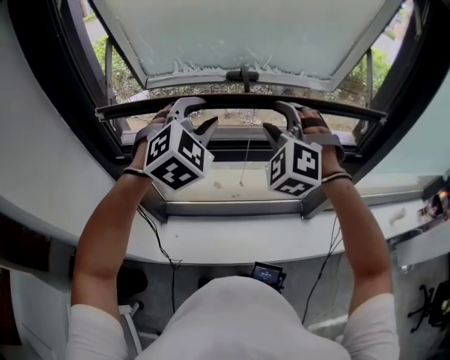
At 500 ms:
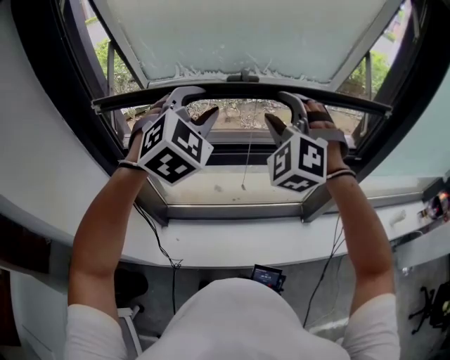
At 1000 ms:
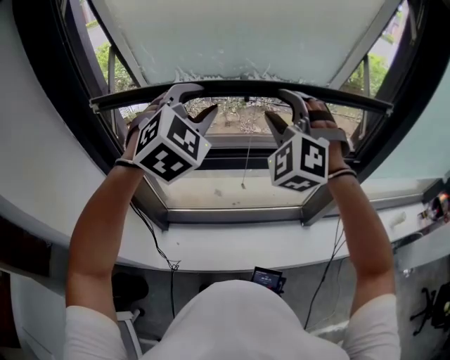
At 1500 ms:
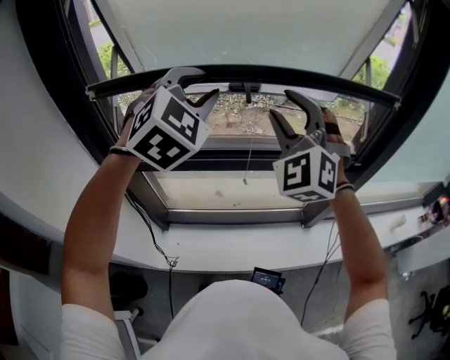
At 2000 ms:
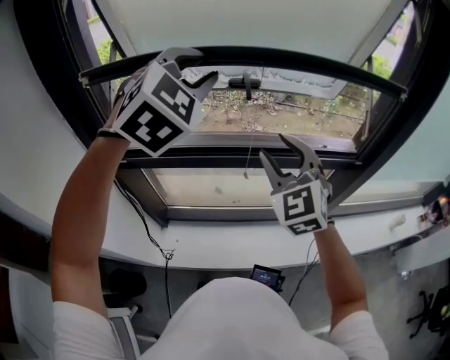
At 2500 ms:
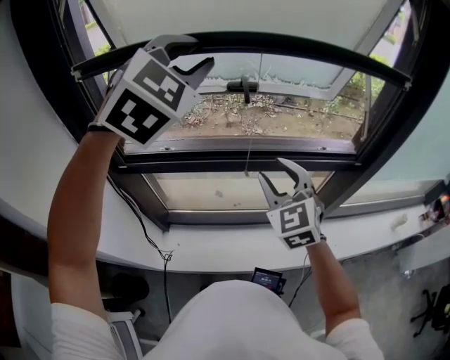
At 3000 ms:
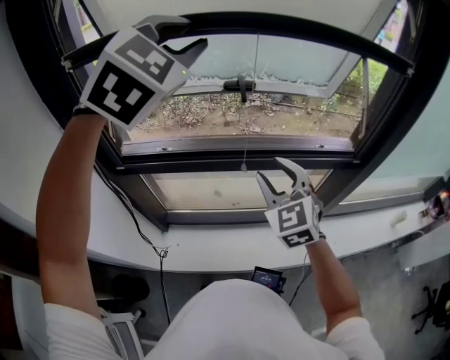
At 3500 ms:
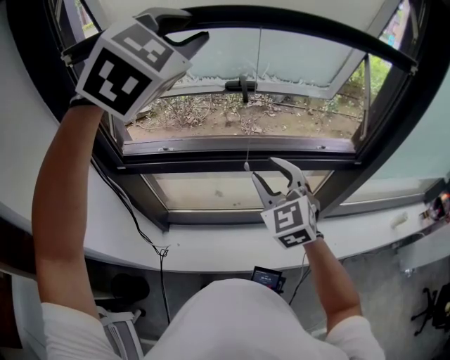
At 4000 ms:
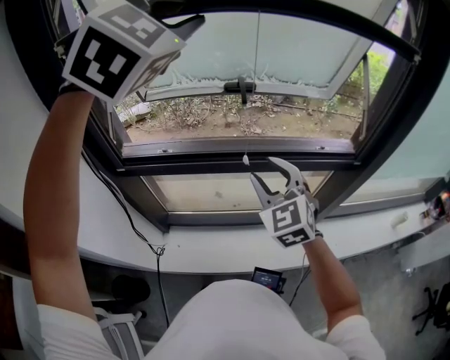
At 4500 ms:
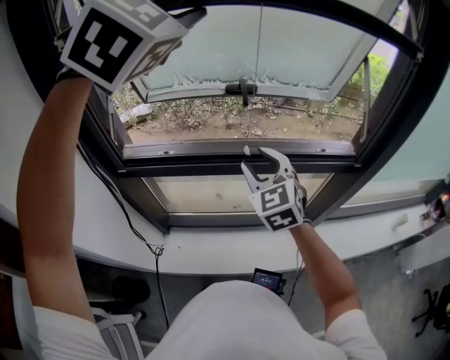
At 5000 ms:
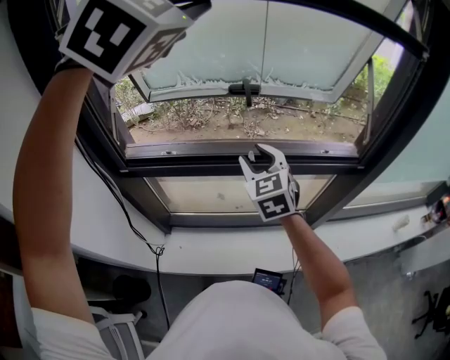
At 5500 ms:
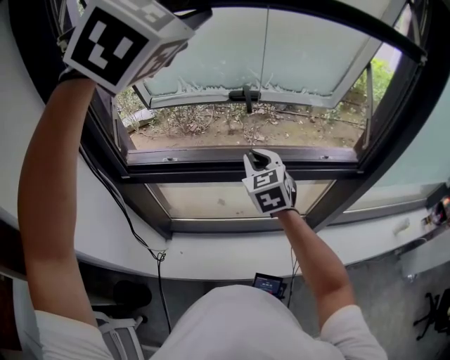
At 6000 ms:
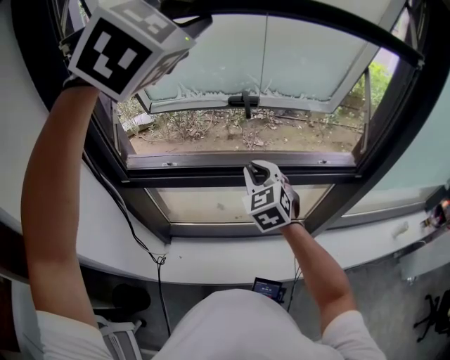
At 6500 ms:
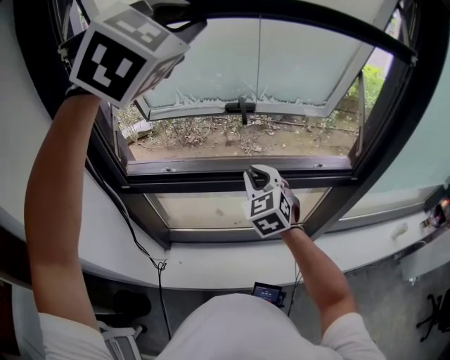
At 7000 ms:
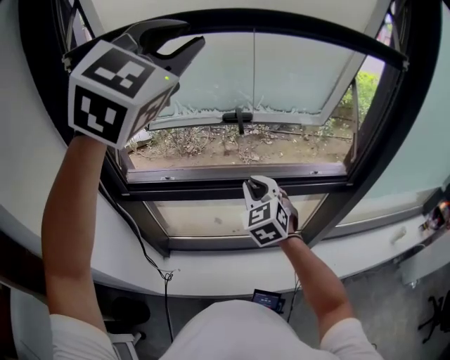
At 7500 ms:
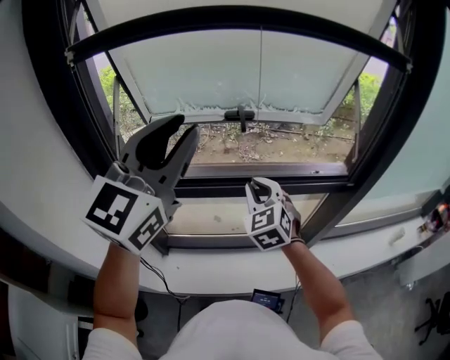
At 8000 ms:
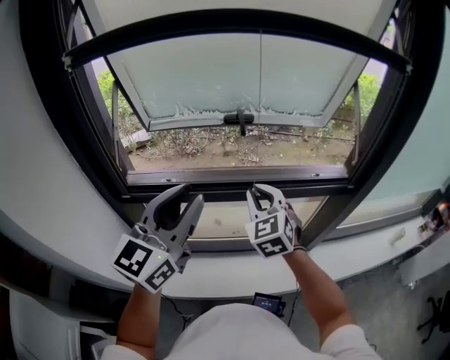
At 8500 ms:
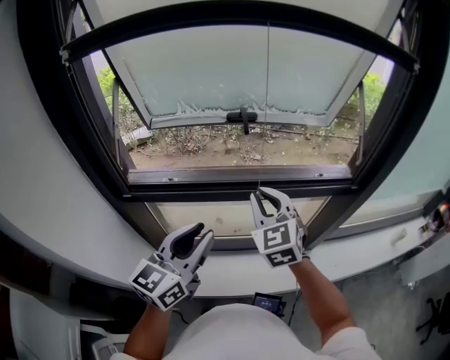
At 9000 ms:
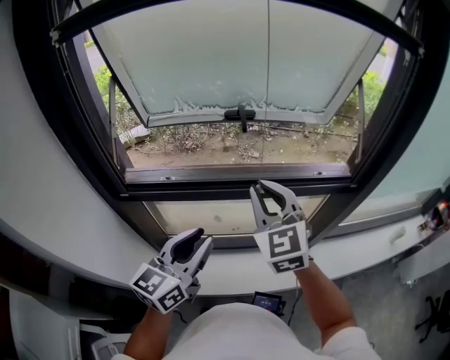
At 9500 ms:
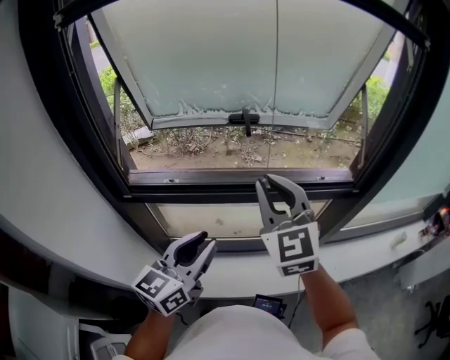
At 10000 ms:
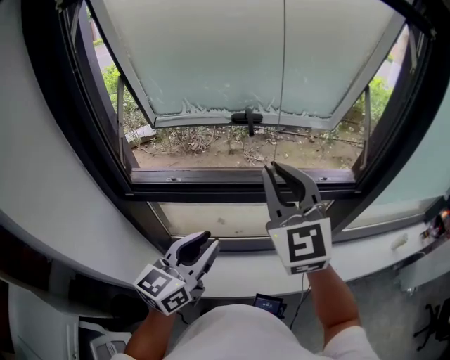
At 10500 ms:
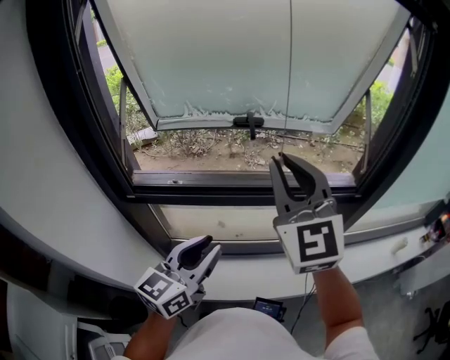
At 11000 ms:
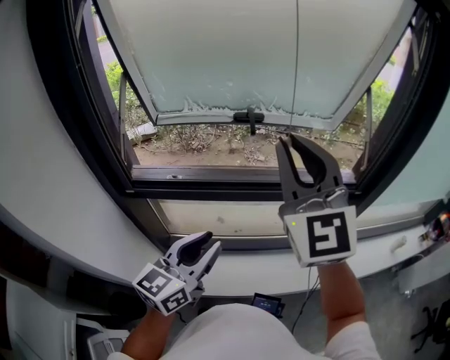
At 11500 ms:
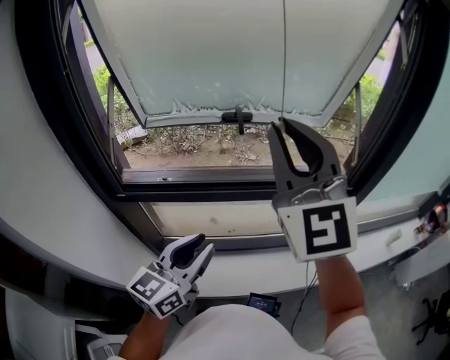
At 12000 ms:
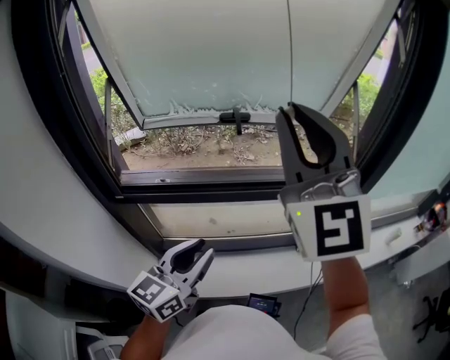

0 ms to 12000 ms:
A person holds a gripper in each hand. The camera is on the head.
0 ms to 2000 ms: The left gripper travels upward by approximately 15 cm. Meanwhile the right gripper travels backward by about 5 cm, moves some 10 cm upward and comes back, and swivels some 40 degrees.
2000 ms to 4000 ms: The left gripper travels upward by some 15 cm; the right gripper goes approximately 5 cm downward.
4000 ms to 6000 ms: The right gripper shifts some 5 cm forward, and closes its fingers.
6000 ms to 8000 ms: The left gripper shifts about 30 cm downward and backward, and twists about 60 degrees counterclockwise, seen from behind.
8000 ms to 10000 ms: The right gripper is displaced upward by about 15 cm, and changes its angle by approximately 20 degrees; the left gripper moves downward, some 10 cm.
10000 ms to 12000 ms: The right gripper shifts approximately 15 cm upward.

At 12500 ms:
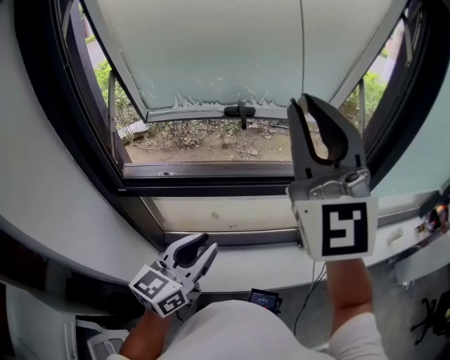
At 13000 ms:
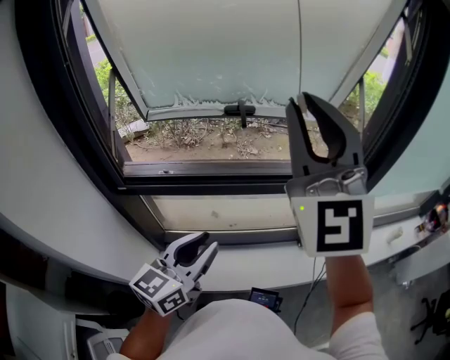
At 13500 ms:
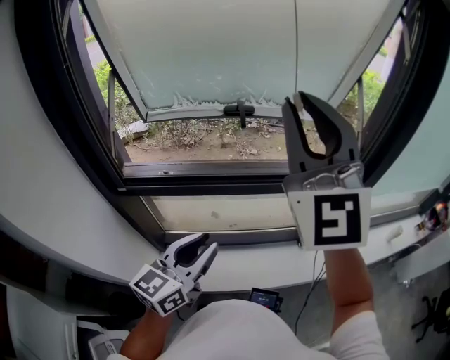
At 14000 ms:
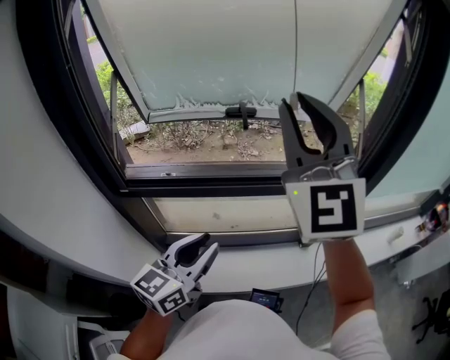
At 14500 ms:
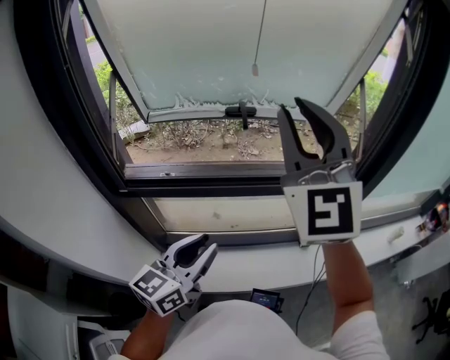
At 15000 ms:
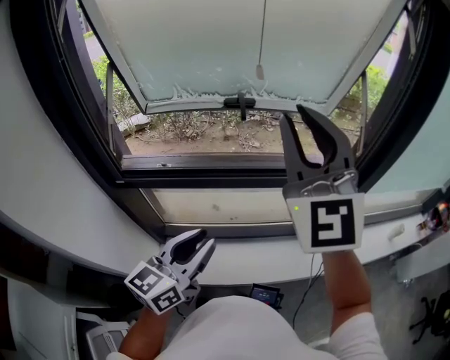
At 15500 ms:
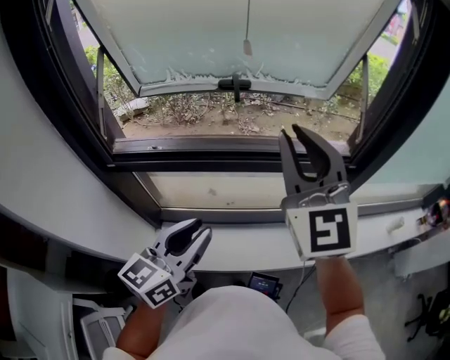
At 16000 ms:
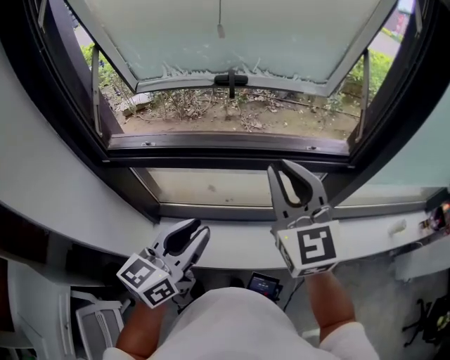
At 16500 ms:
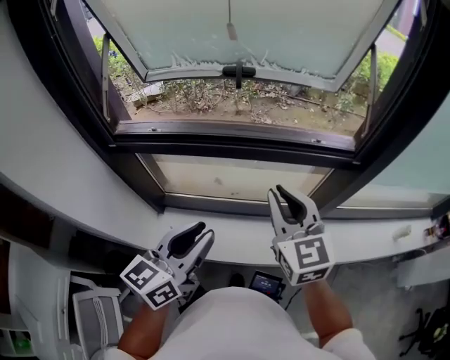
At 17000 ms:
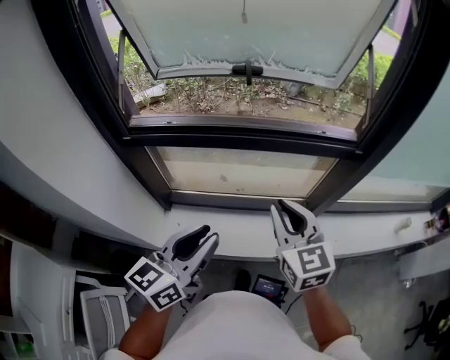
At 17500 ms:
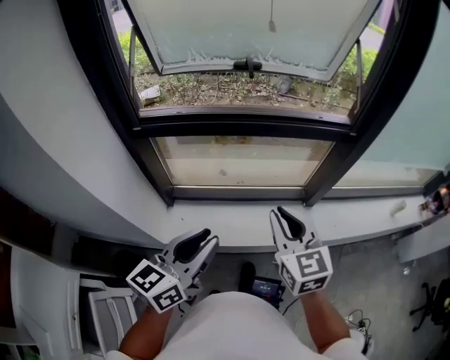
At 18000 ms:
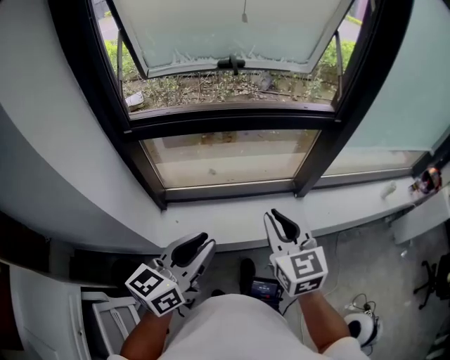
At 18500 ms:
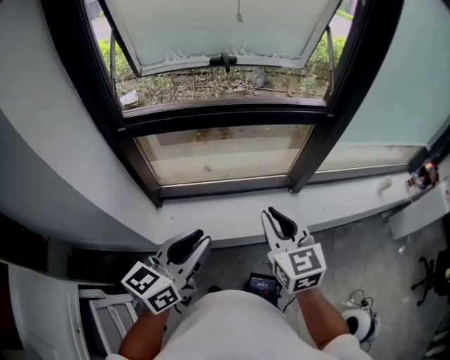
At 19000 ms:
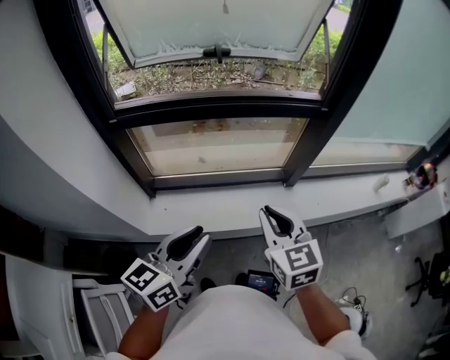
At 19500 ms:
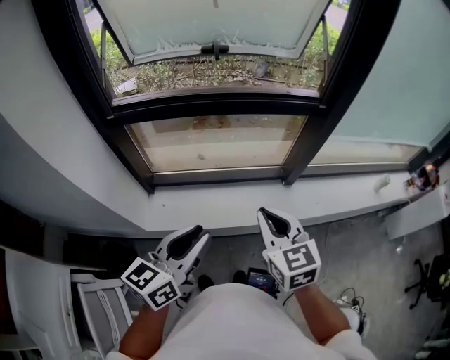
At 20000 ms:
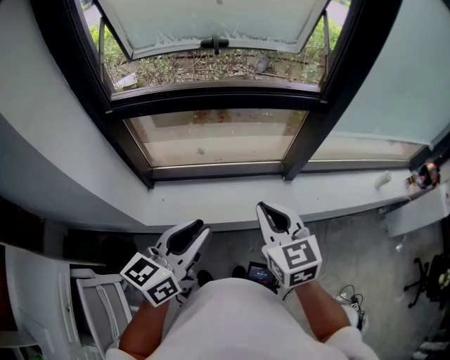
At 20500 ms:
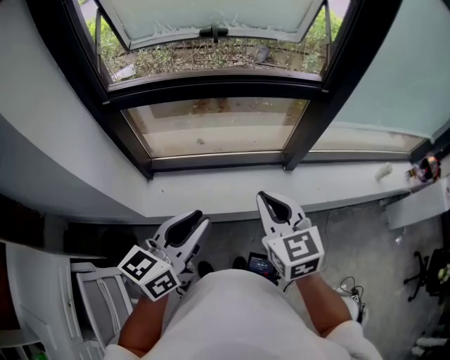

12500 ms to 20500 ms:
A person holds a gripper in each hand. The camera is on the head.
12500 ms to 14500 ms: There are only small adjustments of the grippers.
14500 ms to 16500 ms: The left gripper goes some 10 cm to the right; the right gripper travels downward by some 25 cm, and turns by roughly 40 degrees.
16500 ms to 18500 ms: The grippers both shift backward by roughly 20 cm.
18500 ms to 20500 ms: The left gripper shifts some 5 cm to the right.

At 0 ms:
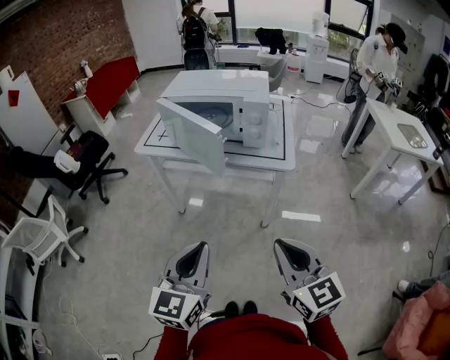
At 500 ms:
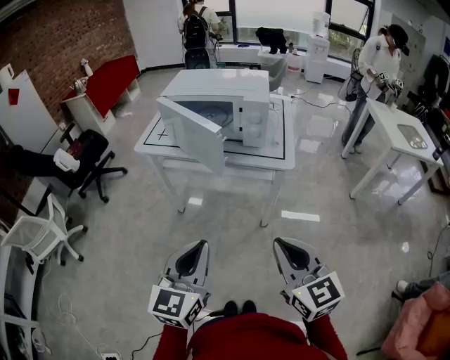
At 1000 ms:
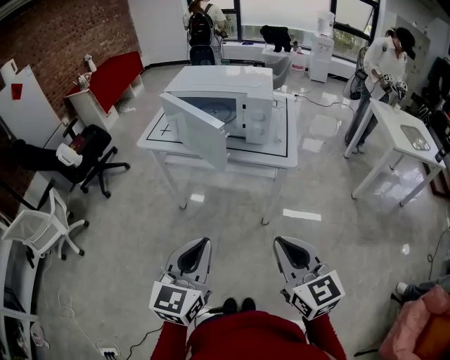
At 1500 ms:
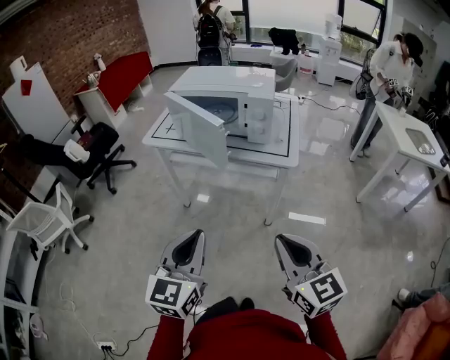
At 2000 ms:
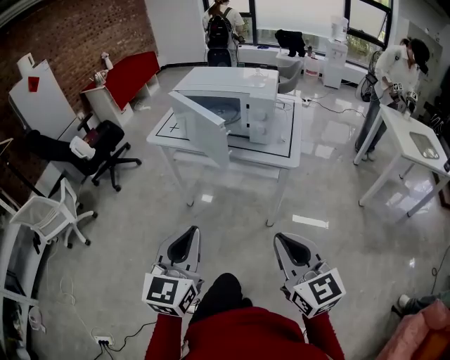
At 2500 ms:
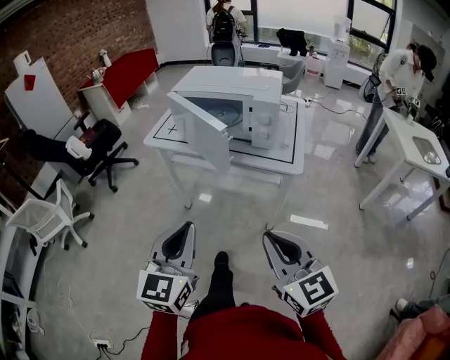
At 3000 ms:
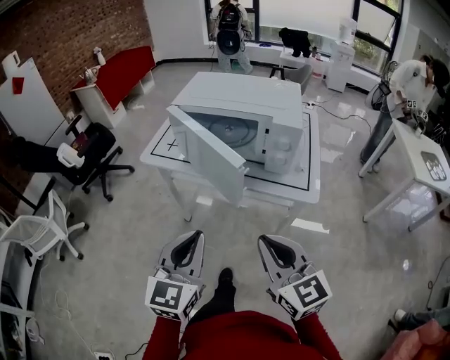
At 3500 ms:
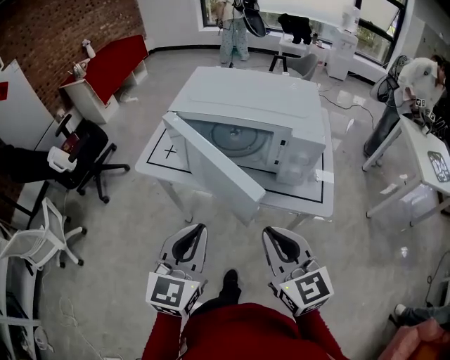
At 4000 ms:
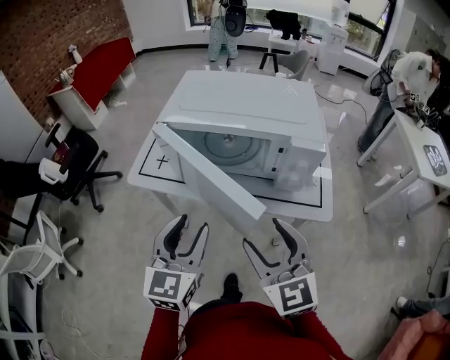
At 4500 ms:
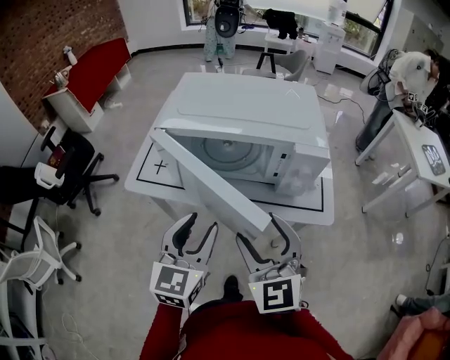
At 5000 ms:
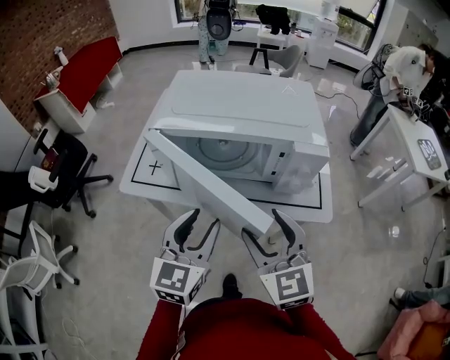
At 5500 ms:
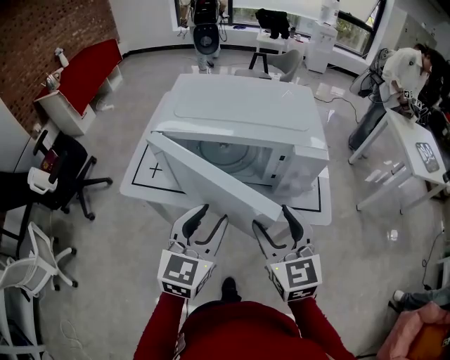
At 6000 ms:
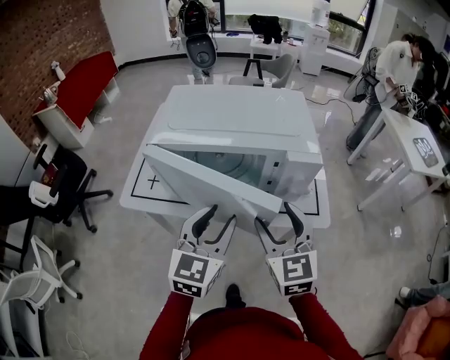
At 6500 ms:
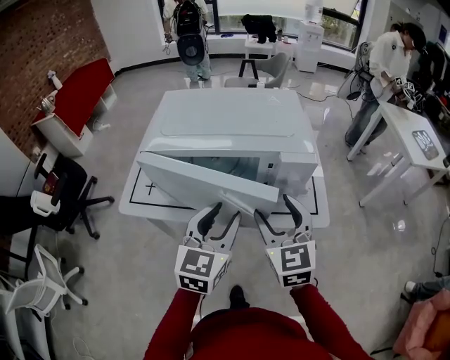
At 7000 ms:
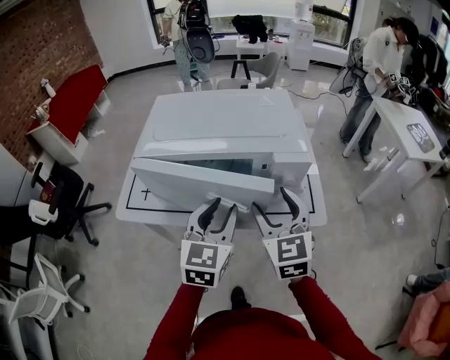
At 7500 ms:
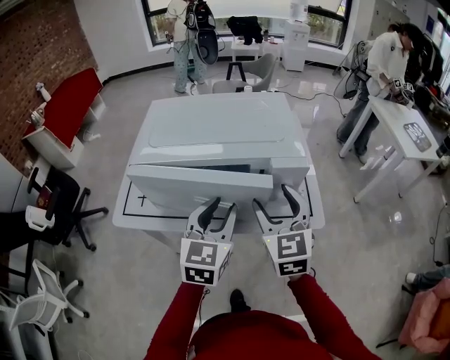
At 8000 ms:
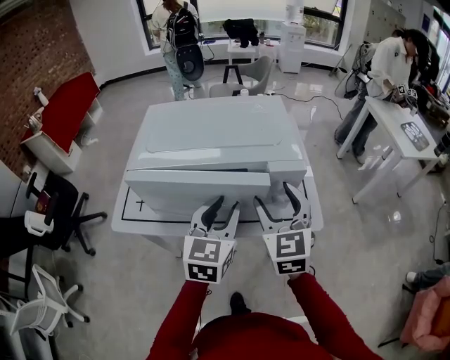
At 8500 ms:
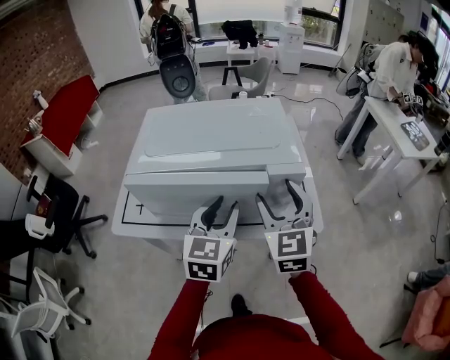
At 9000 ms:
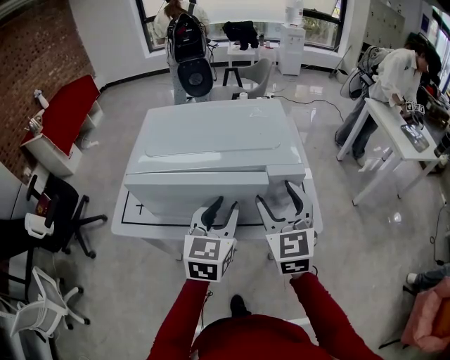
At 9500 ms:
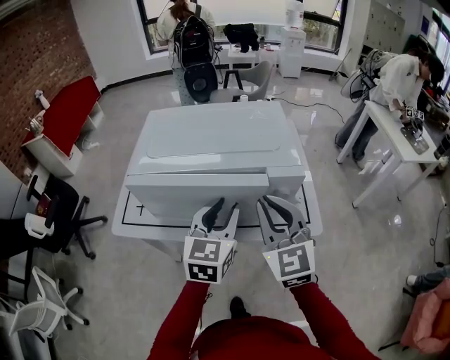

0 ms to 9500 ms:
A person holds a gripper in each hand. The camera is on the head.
0 ms to 2000 ms: The grippers stay close to where they were, moving slightly.
2000 ms to 4000 ms: Both grippers travel together forward, about 25 cm. The right gripper rotates about 20 degrees, and opens up. Meanwhile the left gripper opens its fingers.
4000 ms to 5500 ms: The two grippers go roughly 5 cm forward.
5500 ms to 7500 ms: The left gripper is displaced forward and to the right by approximately 10 cm, while the right gripper travels forward by roughly 10 cm.
7500 ms to 9500 ms: The right gripper closes its fingers.
